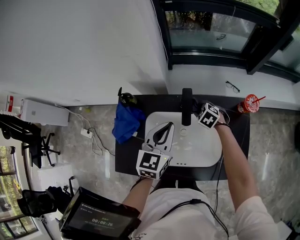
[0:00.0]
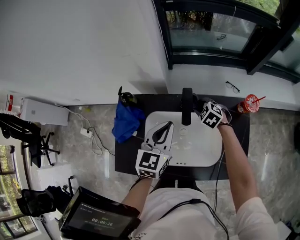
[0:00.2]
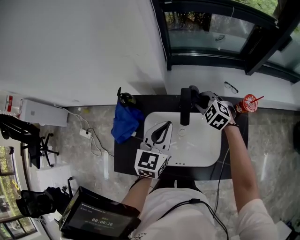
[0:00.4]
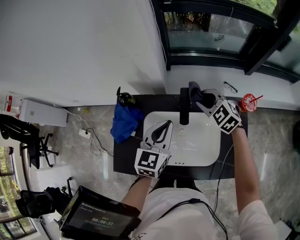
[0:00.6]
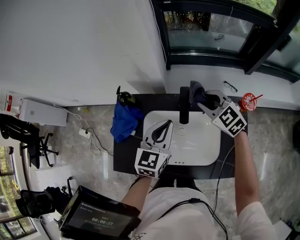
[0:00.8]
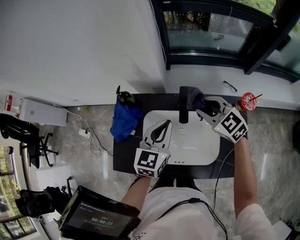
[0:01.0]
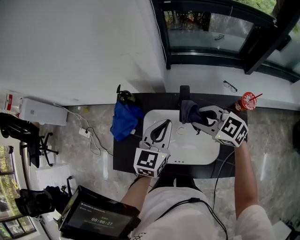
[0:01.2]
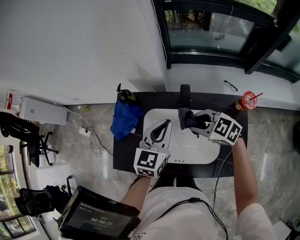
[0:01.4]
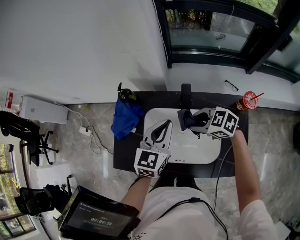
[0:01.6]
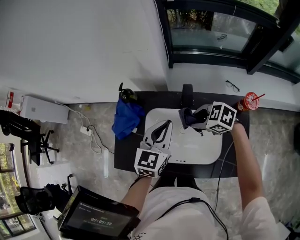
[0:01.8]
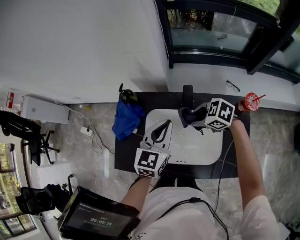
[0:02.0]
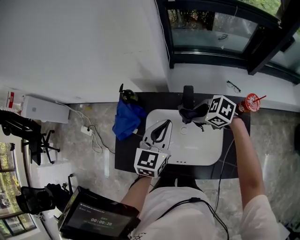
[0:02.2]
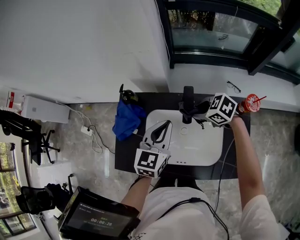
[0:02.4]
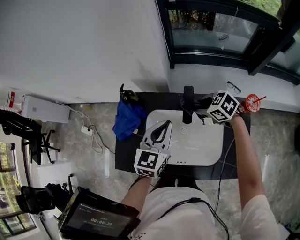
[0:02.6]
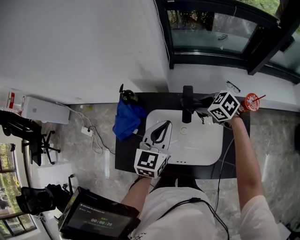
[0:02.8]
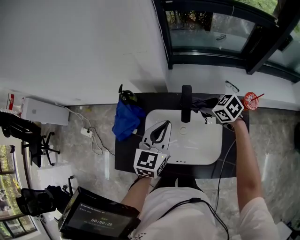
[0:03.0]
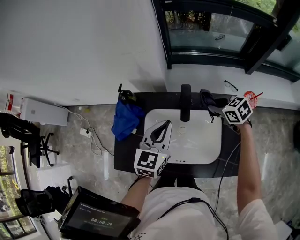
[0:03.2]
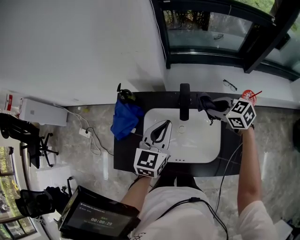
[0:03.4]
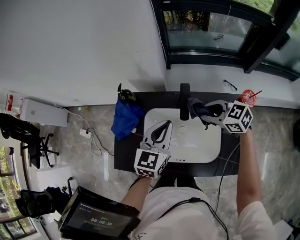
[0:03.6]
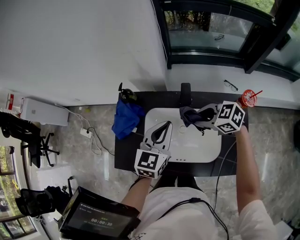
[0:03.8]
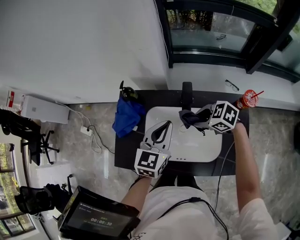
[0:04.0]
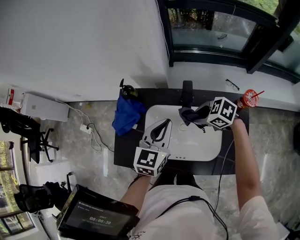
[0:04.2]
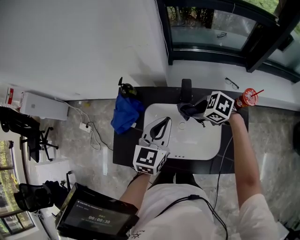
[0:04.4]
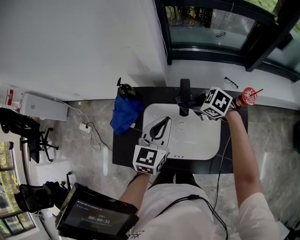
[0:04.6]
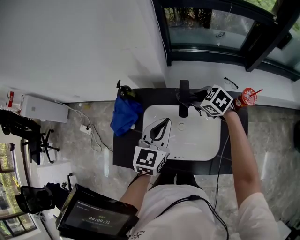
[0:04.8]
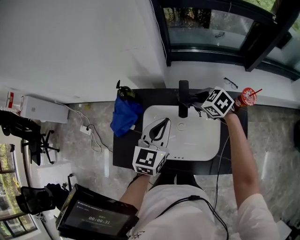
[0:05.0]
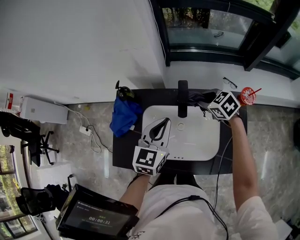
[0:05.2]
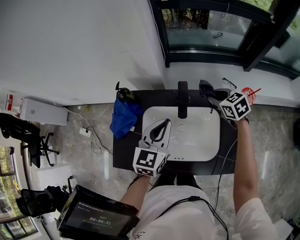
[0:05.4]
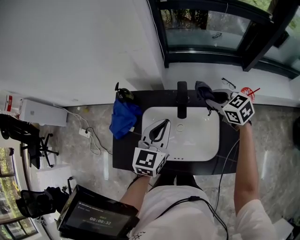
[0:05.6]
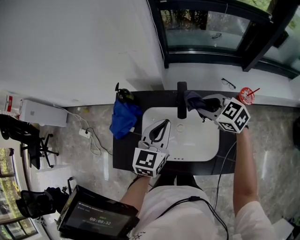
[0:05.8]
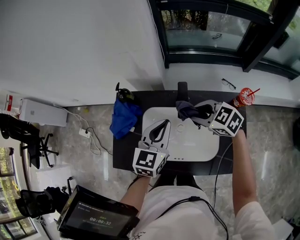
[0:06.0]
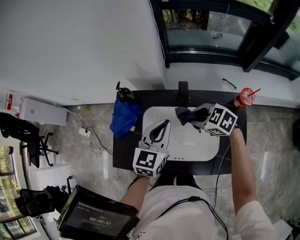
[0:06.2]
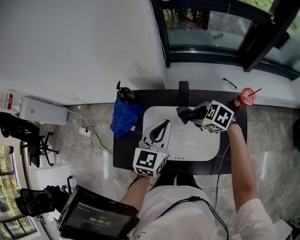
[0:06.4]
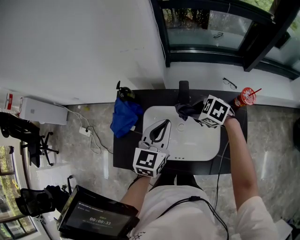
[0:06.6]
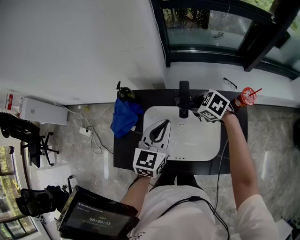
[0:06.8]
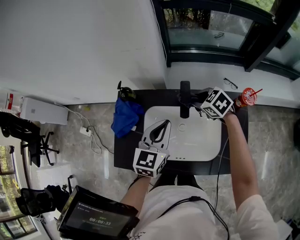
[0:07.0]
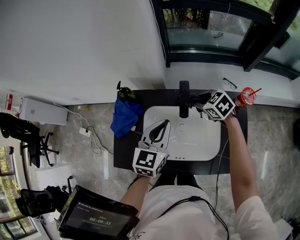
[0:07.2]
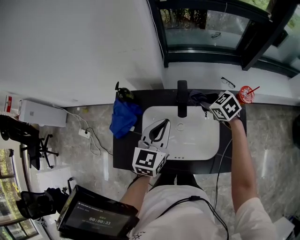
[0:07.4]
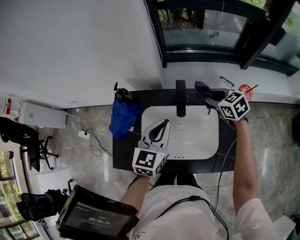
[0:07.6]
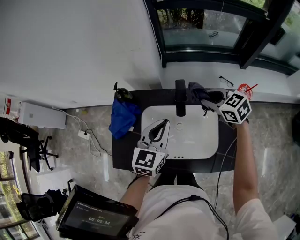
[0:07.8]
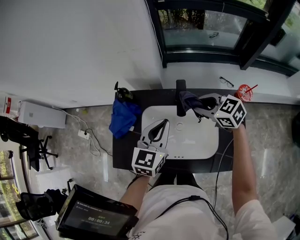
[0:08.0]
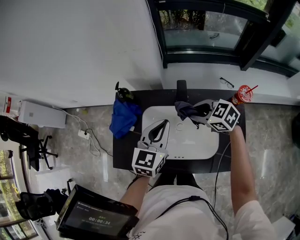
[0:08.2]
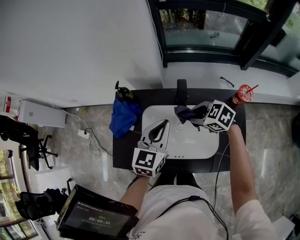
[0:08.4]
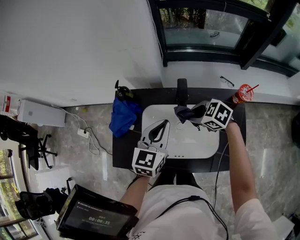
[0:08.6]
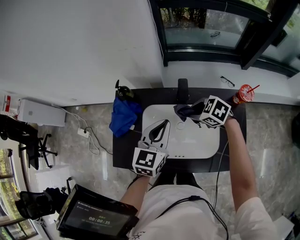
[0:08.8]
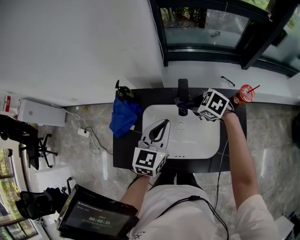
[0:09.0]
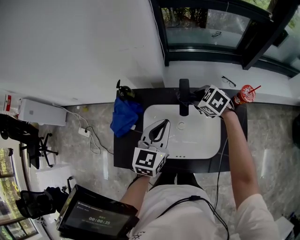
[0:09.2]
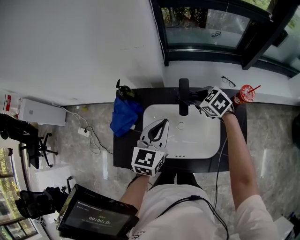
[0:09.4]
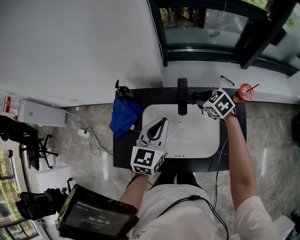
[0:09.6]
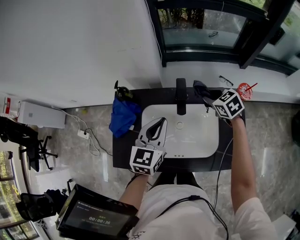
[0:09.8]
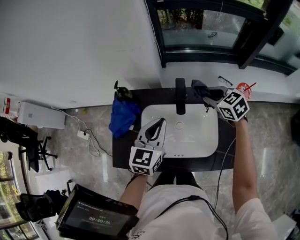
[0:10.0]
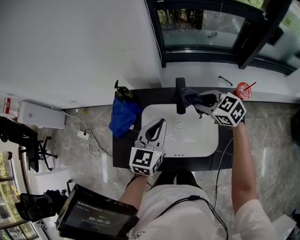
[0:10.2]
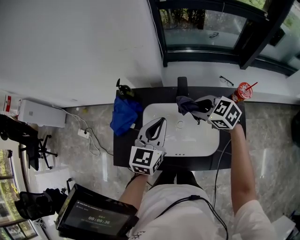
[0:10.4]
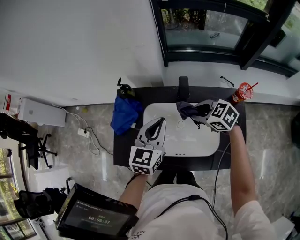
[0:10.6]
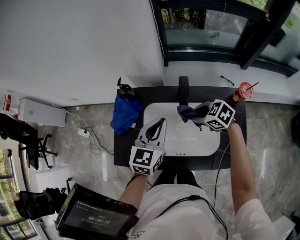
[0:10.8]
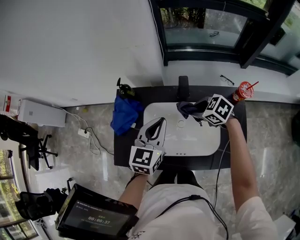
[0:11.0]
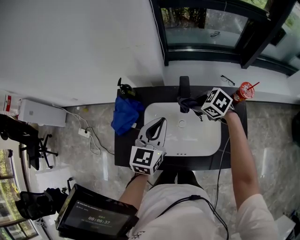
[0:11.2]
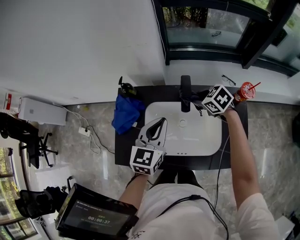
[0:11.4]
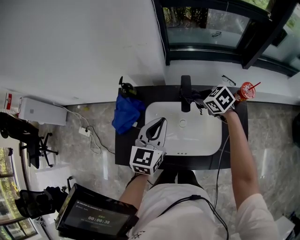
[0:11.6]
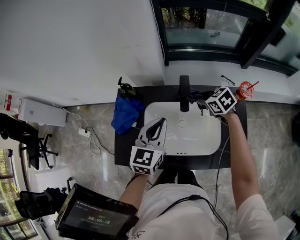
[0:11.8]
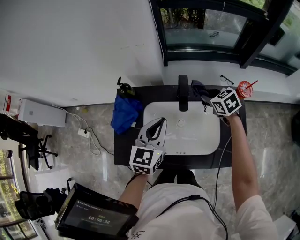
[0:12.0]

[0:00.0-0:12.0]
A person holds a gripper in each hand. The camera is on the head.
0:00.0 to 0:01.6: The right gripper goes about 15 cm upward, backward and to the left, and changes its angle by some 30 degrees.
0:01.6 to 0:03.0: The right gripper is displaced to the right and forward by about 10 cm, and swivels roughly 20 degrees.
0:03.0 to 0:04.4: The right gripper is displaced to the left by roughly 5 cm, and turns by about 20 degrees.
0:04.4 to 0:06.0: The right gripper travels upward by some 5 cm, reaches roughly 10 cm to the right, then returns, and changes its angle by roughly 20 degrees.
0:06.0 to 0:07.6: The right gripper moves to the right, approximately 10 cm, and changes its angle by roughly 20 degrees.
0:07.6 to 0:09.0: The right gripper is displaced to the left by some 10 cm, and rotates about 30 degrees.
0:09.0 to 0:10.4: The right gripper travels upward by approximately 5 cm, and moves about 10 cm to the right and comes back.
0:10.4 to 0:12.0: The right gripper moves to the right, about 10 cm, and turns by approximately 20 degrees.

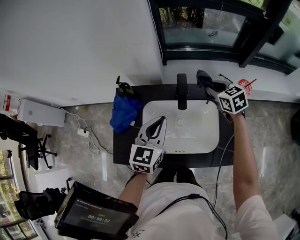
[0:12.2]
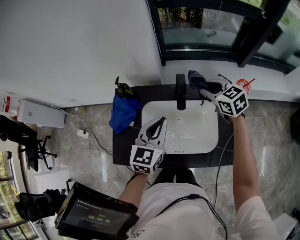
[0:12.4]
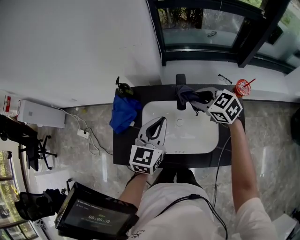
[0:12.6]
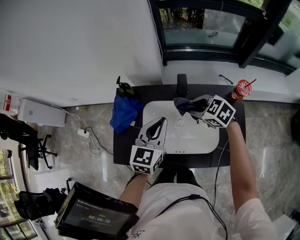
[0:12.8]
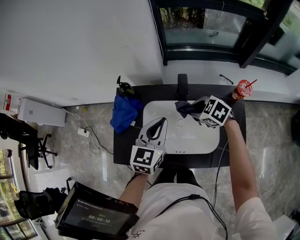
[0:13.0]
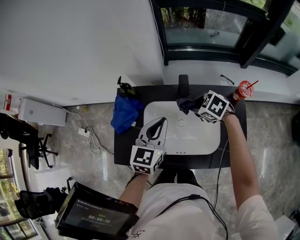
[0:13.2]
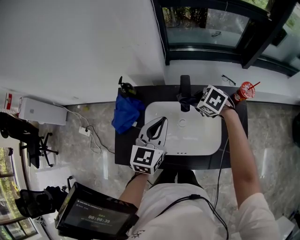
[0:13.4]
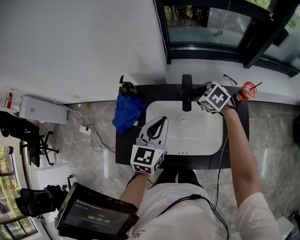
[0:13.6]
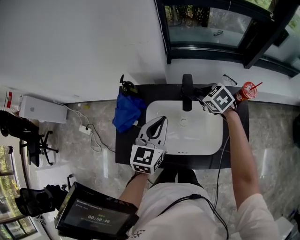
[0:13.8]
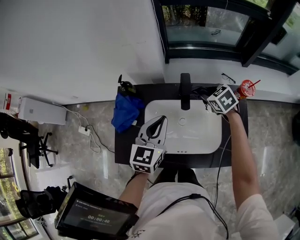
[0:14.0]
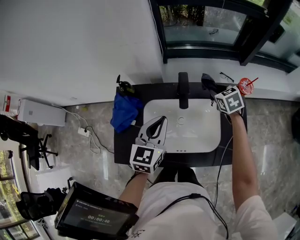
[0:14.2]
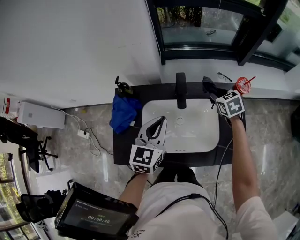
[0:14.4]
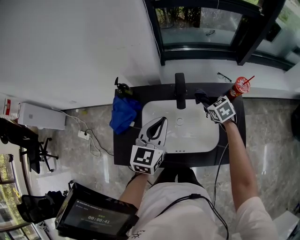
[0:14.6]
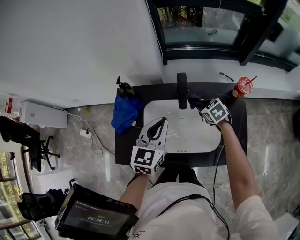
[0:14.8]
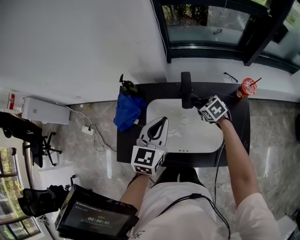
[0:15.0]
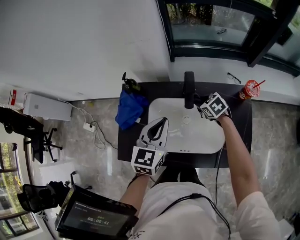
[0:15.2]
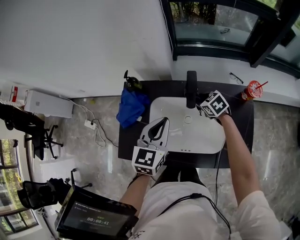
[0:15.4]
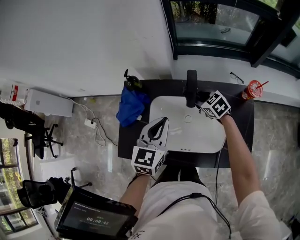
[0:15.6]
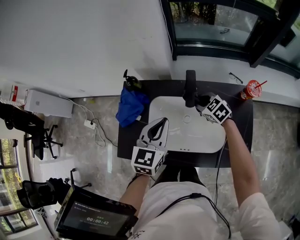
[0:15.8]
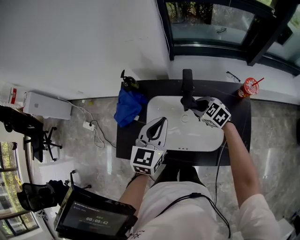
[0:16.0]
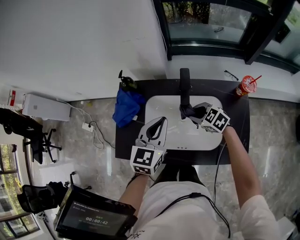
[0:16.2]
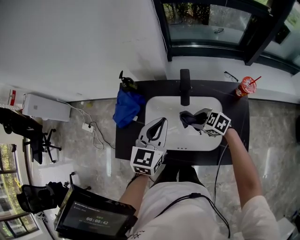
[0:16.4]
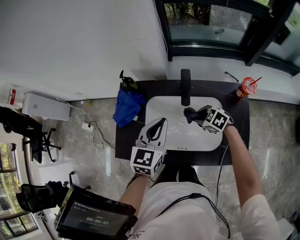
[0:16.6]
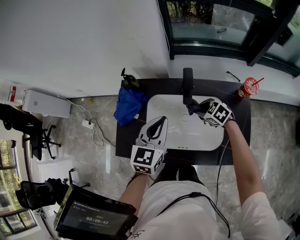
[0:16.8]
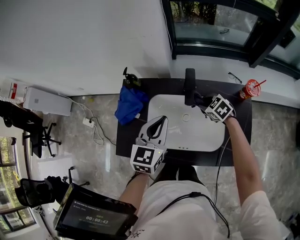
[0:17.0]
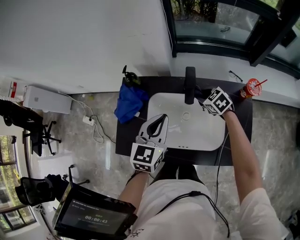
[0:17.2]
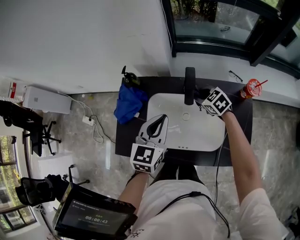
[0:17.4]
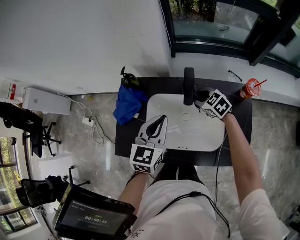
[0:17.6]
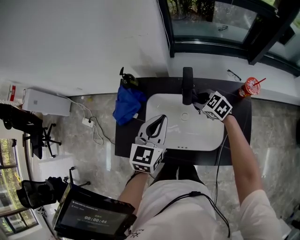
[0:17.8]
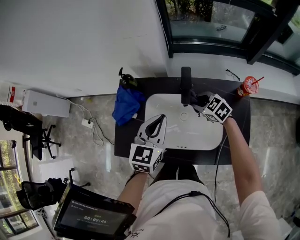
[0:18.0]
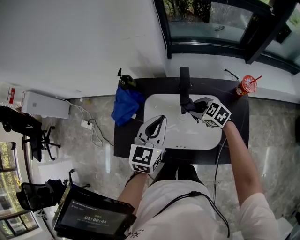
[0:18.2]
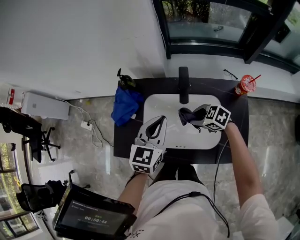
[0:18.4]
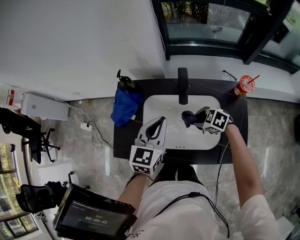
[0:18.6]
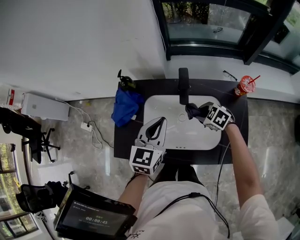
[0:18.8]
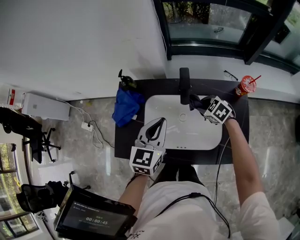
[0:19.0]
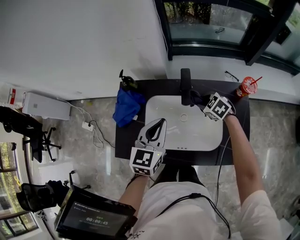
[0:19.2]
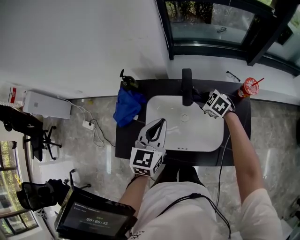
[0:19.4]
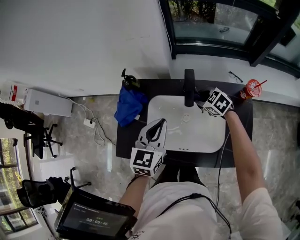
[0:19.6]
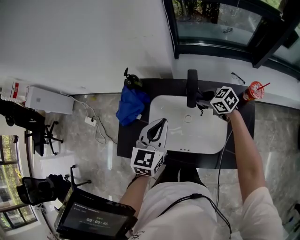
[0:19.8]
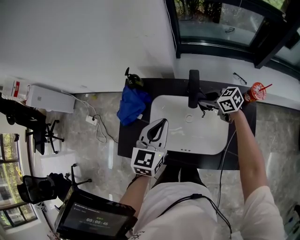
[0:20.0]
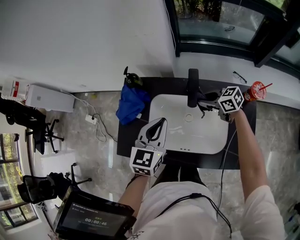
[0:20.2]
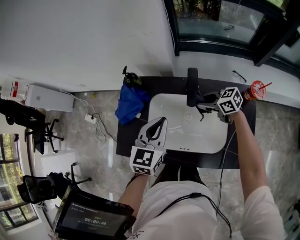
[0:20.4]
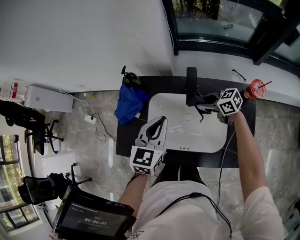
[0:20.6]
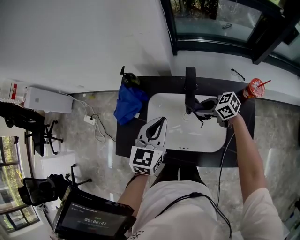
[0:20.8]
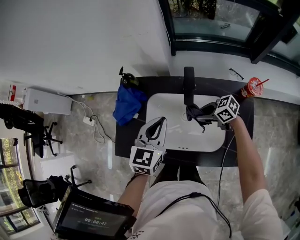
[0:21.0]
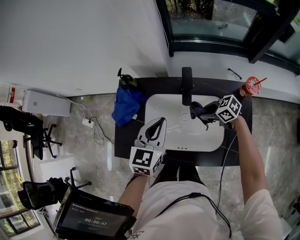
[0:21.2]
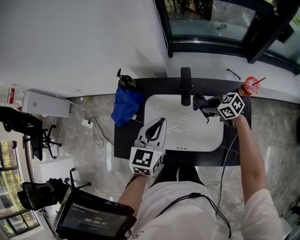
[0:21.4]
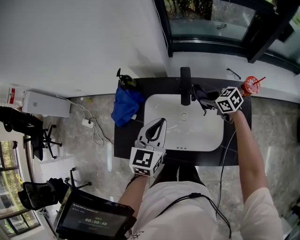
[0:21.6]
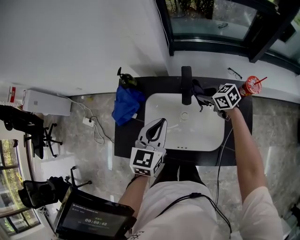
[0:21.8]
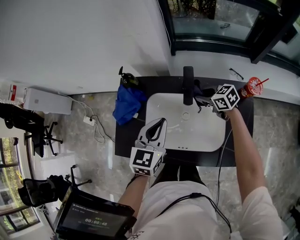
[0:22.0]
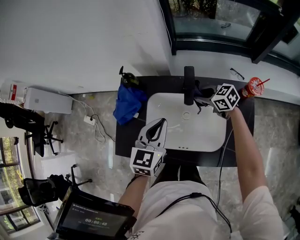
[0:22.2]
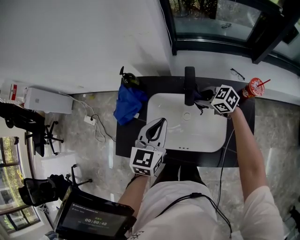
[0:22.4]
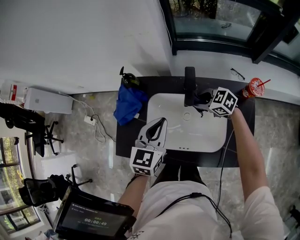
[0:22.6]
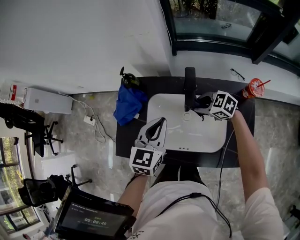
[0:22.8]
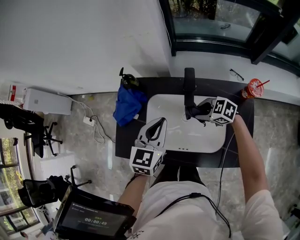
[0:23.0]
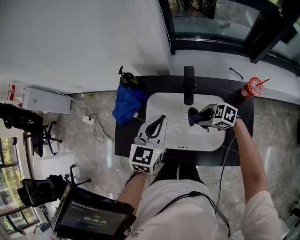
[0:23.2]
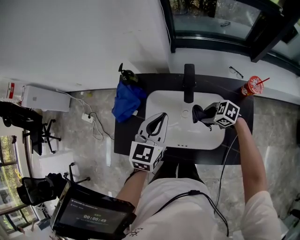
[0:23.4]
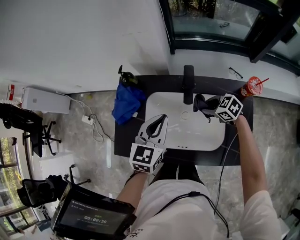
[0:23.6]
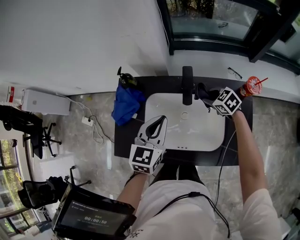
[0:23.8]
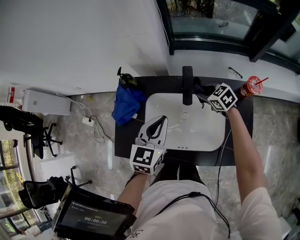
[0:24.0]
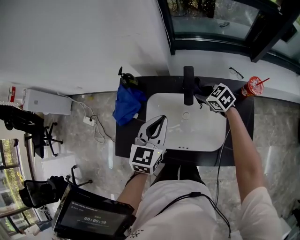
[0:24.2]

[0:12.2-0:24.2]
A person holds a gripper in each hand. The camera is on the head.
0:12.2 to 0:13.8: The right gripper travels to the left by approximately 5 cm, and turns by approximately 20 degrees.
0:13.8 to 0:15.2: The right gripper shifts about 10 cm downward, and goes to the right and returns, roughly 10 cm each way.
0:15.2 to 0:16.6: The right gripper shifts approximately 10 cm backward, and rotates approximately 20 degrees.
0:16.6 to 0:18.2: The right gripper moves approximately 10 cm forward and comes back.
0:18.2 to 0:19.8: The right gripper goes about 5 cm forward.
0:19.8 to 0:21.2: The right gripper shifts about 10 cm backward.
0:21.2 to 0:22.6: The right gripper moves forward, roughly 5 cm.
0:22.6 to 0:24.2: The right gripper reaches about 10 cm backward, then returns.
